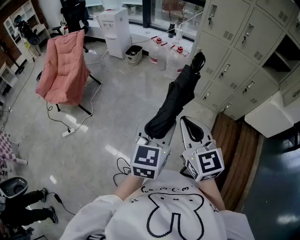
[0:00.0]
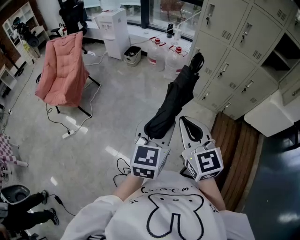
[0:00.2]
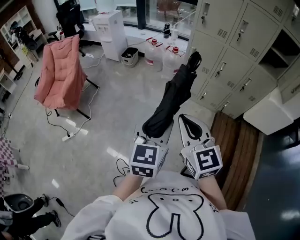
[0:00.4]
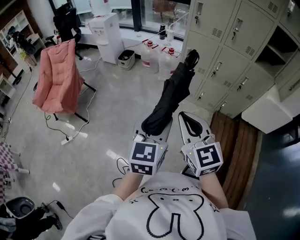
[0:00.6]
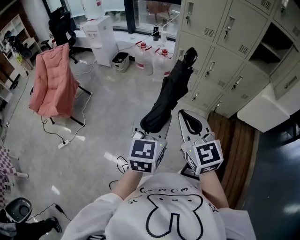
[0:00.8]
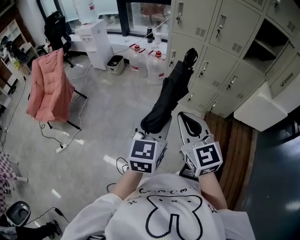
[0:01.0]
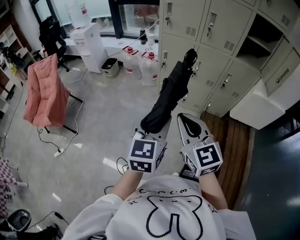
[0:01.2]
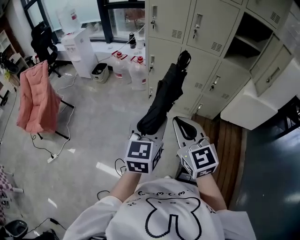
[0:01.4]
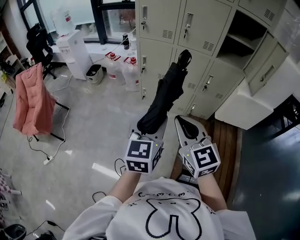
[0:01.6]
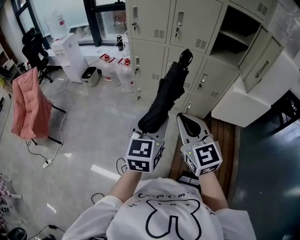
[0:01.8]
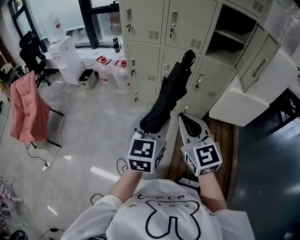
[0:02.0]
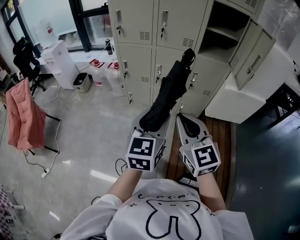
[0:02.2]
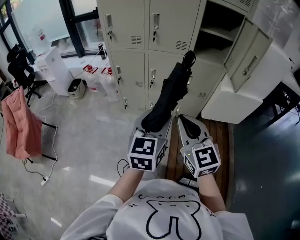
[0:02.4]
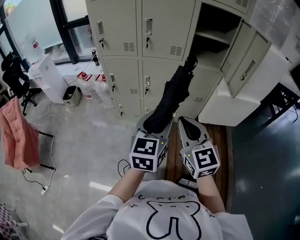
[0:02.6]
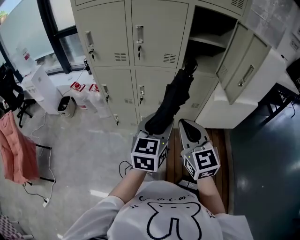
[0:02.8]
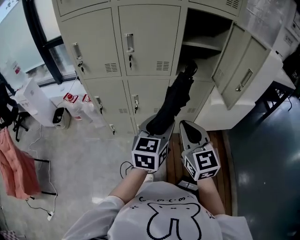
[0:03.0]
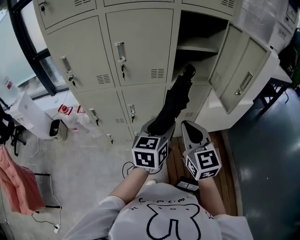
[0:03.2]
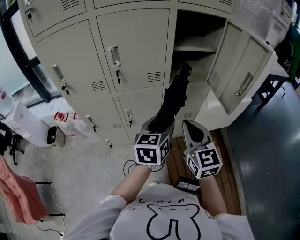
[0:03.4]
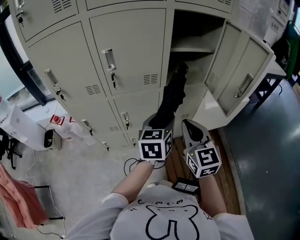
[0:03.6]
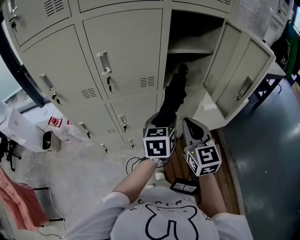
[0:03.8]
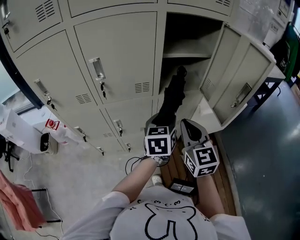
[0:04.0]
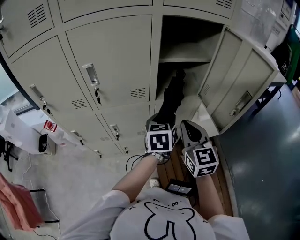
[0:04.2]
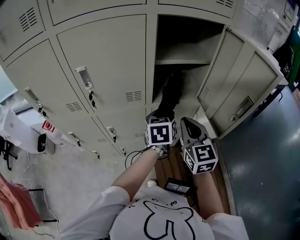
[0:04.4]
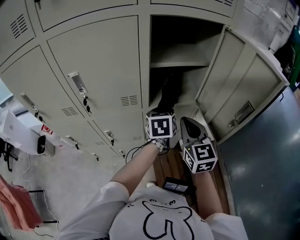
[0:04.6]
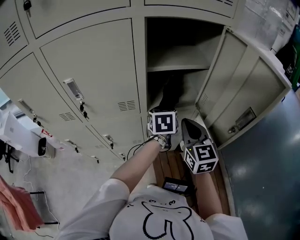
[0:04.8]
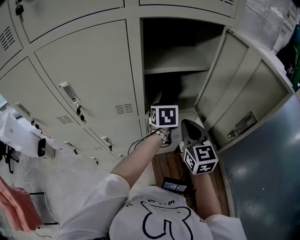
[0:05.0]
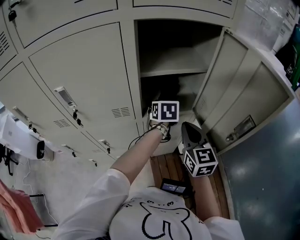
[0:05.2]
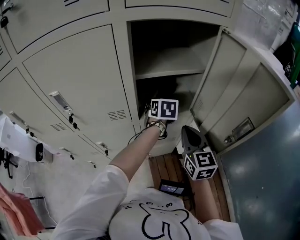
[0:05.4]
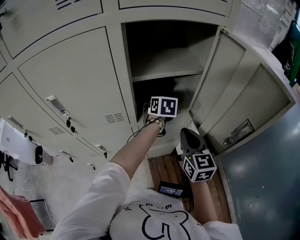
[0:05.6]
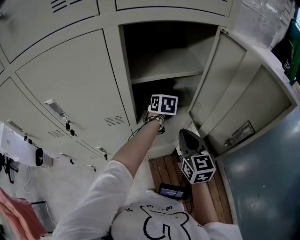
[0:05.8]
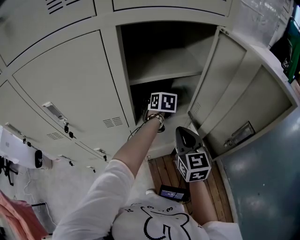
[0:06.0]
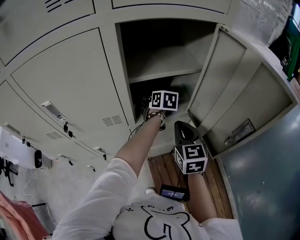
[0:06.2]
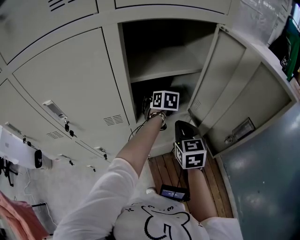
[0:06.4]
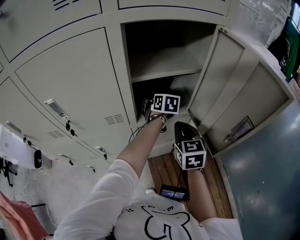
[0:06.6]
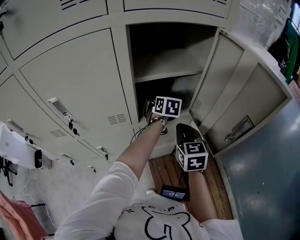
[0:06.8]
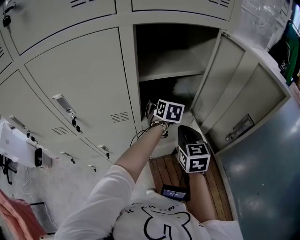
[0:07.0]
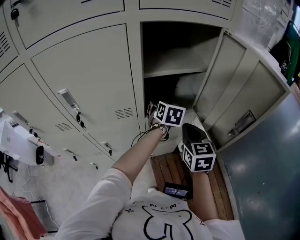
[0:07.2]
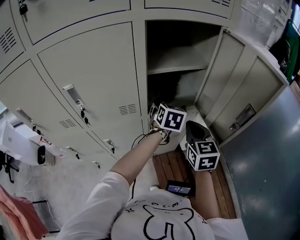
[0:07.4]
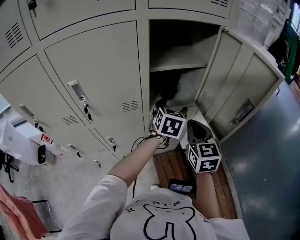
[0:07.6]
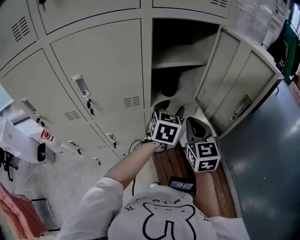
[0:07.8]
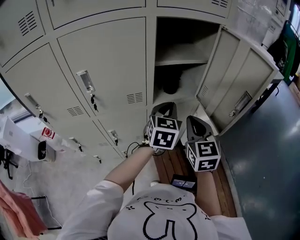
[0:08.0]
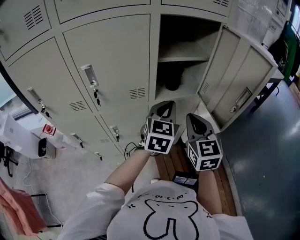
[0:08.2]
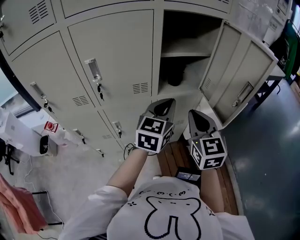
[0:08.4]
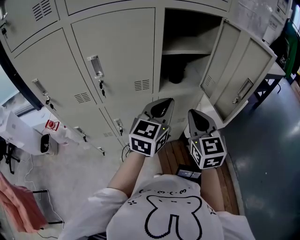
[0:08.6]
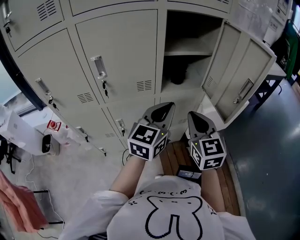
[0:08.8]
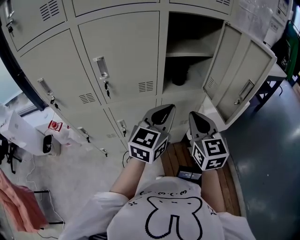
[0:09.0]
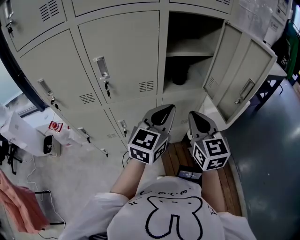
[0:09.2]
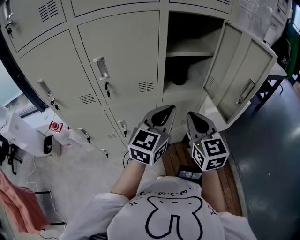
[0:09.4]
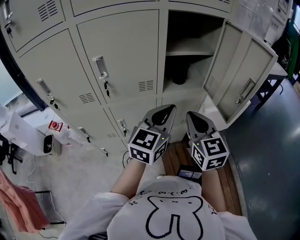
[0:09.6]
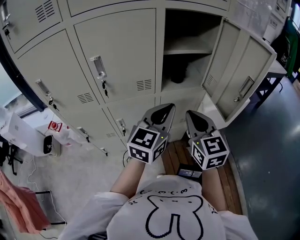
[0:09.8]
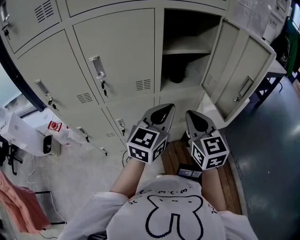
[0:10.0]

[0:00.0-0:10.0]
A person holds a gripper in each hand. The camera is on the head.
0:00.0 to 0:01.4: The grippers both shift to the right by roughly 25 cm.
0:01.4 to 0:02.8: Both grippers travel together to the right and forward, approximately 30 cm. The left gripper swivels about 20 degrees, while the right gripper rotates roughly 20 degrees.
0:02.8 to 0:04.2: Both grippers travel together forward, approximately 25 cm.
0:04.2 to 0:05.8: The left gripper shifts some 25 cm forward, and turns by roughly 30 degrees; the right gripper heads forward and to the right, covering some 15 cm.
0:05.8 to 0:07.2: The left gripper shifts approximately 5 cm backward, and opens up.
0:07.2 to 0:08.6: The right gripper travels backward and upward by approximately 15 cm. The left gripper travels backward and upward by about 25 cm, turns by roughly 30 degrees, and closes its fingers.
0:08.6 to 0:10.0: The grippers move only a little.

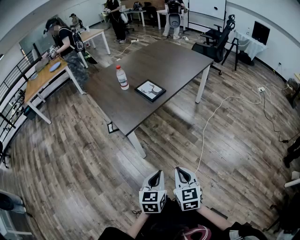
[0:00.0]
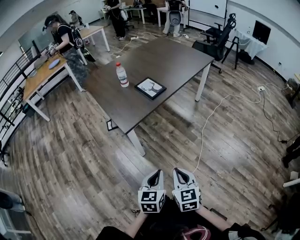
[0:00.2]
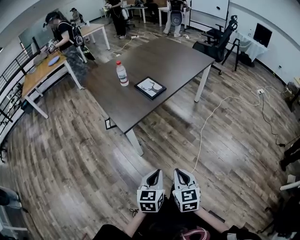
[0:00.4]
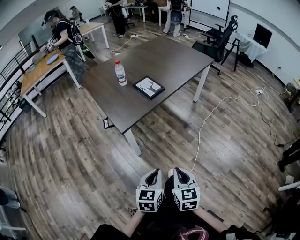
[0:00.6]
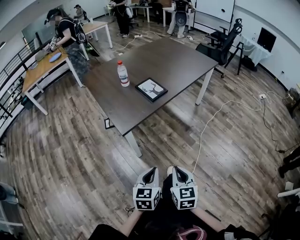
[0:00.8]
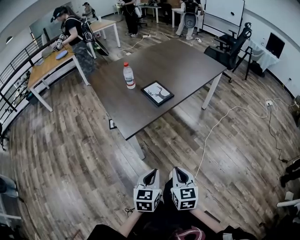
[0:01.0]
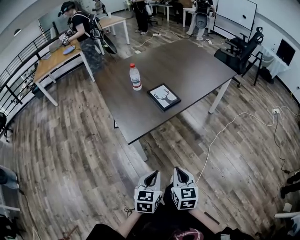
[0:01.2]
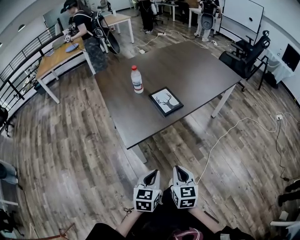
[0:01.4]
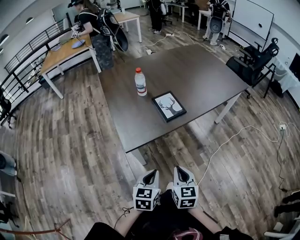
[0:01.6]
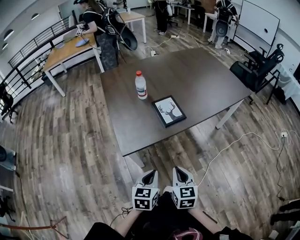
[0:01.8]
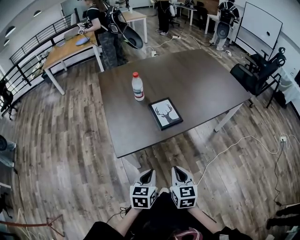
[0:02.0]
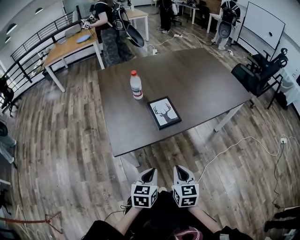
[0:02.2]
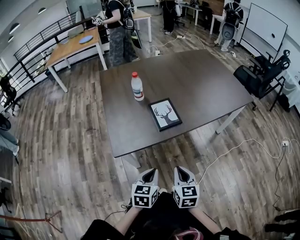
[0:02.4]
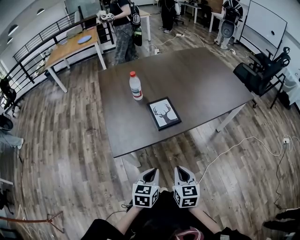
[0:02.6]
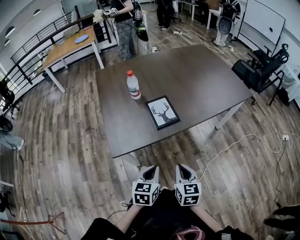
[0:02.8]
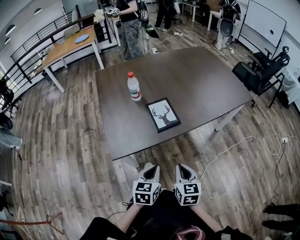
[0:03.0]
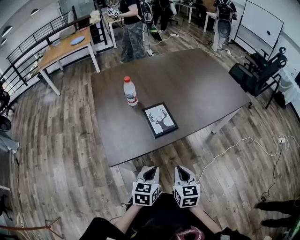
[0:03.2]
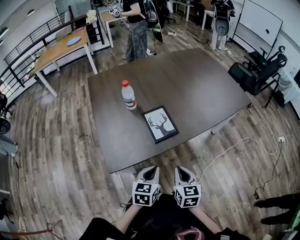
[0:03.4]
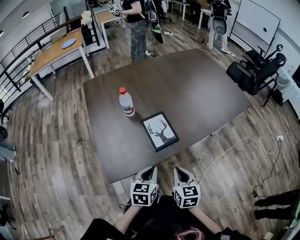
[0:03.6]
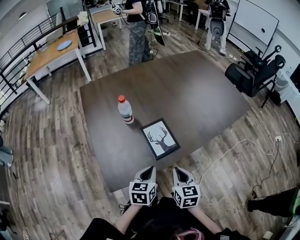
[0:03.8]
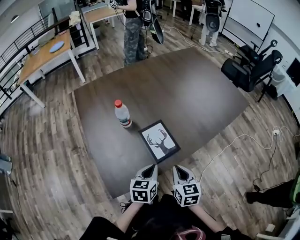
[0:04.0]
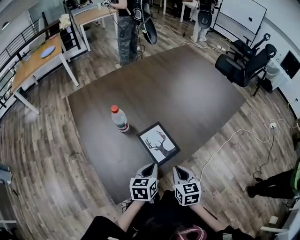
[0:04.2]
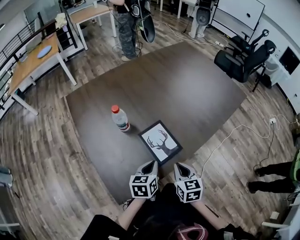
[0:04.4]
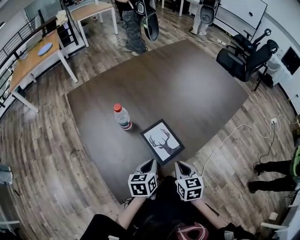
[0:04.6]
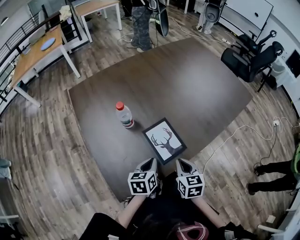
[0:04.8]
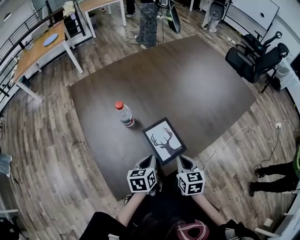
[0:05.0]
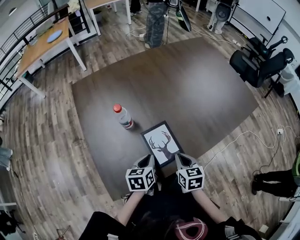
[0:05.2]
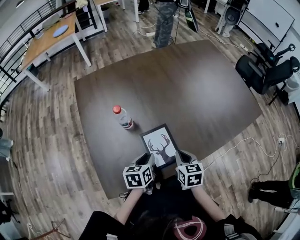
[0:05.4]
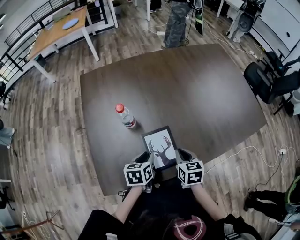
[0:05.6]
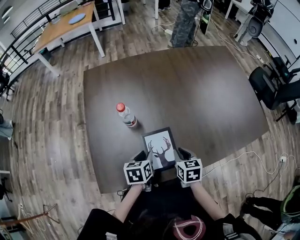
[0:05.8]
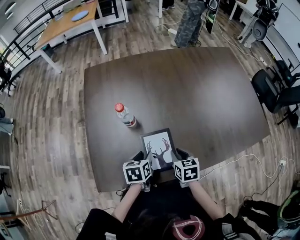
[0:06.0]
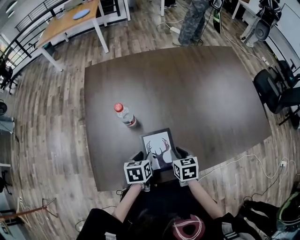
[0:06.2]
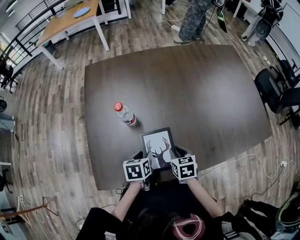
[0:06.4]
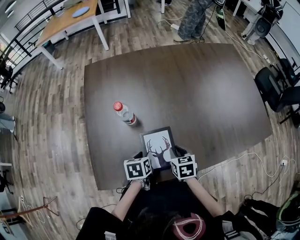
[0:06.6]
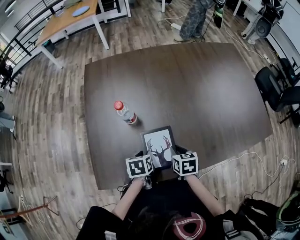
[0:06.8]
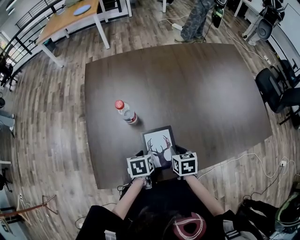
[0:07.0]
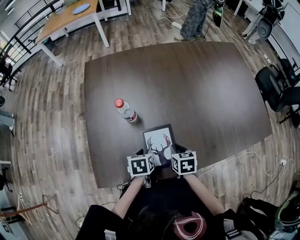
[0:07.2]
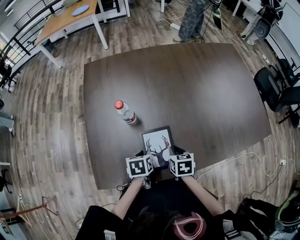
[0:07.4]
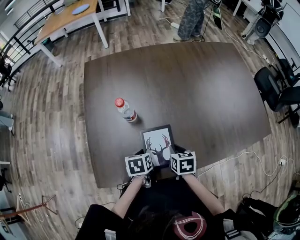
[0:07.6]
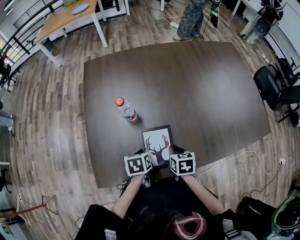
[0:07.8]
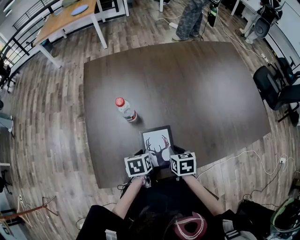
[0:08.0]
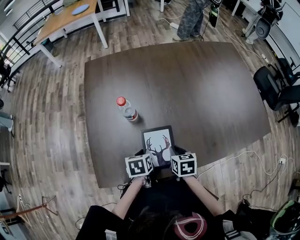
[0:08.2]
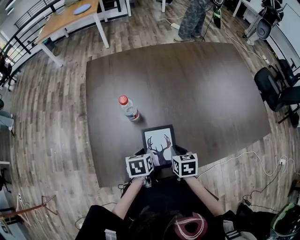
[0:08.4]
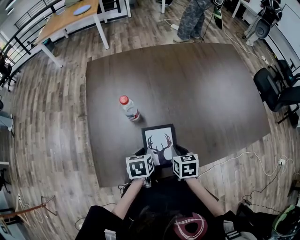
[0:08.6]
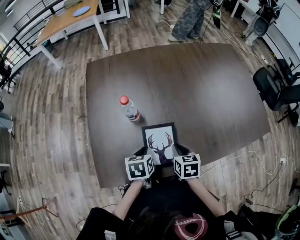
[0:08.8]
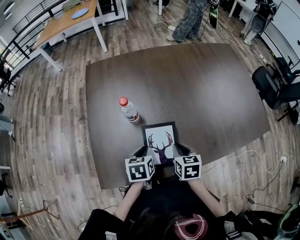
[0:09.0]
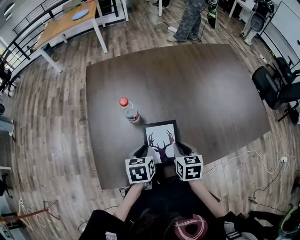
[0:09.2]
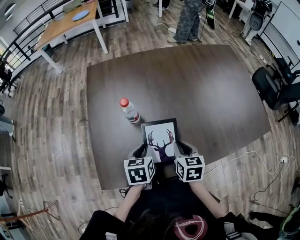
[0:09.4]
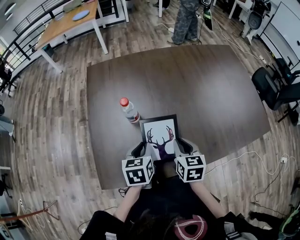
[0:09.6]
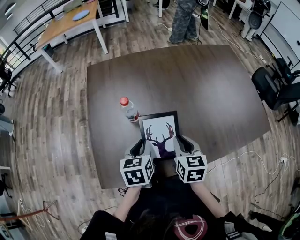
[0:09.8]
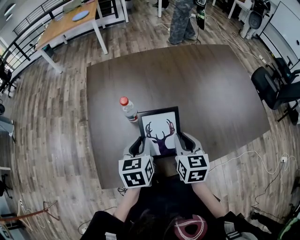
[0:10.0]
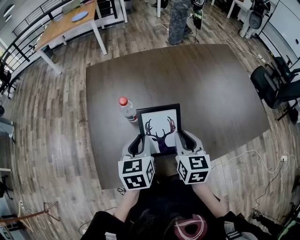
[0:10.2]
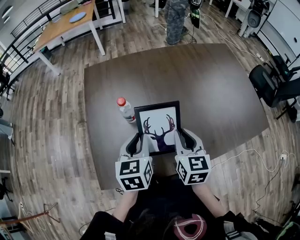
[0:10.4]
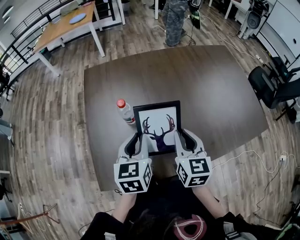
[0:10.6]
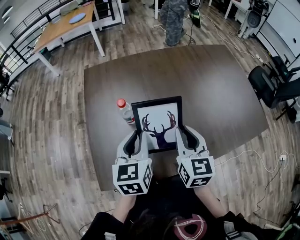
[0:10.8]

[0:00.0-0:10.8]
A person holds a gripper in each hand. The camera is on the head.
0:00.0 to 0:01.6: The two grippers go some 25 cm forward.
0:01.6 to 0:03.0: The two grippers go roughly 15 cm forward and to the right.
0:03.0 to 0:04.6: Both grippers move forward, some 20 cm.
0:04.6 to 0:06.2: The left gripper shifts by some 10 cm, changes its angle by some 30 degrees, and opens its fingers. The right gripper moves about 15 cm, turns by roughly 30 degrees, and opens its fingers.
0:06.2 to 0:07.8: The left gripper closes.
0:07.8 to 0:09.2: The two grippers go about 5 cm upward.
0:09.2 to 0:10.8: The two grippers go approximately 15 cm upward. The left gripper rotates about 30 degrees, while the right gripper turns by some 30 degrees.

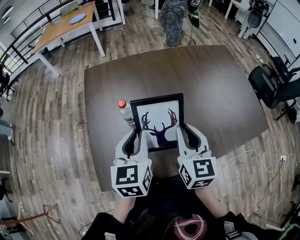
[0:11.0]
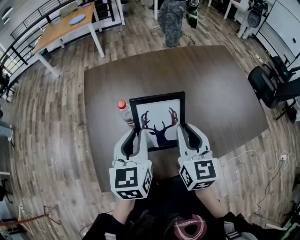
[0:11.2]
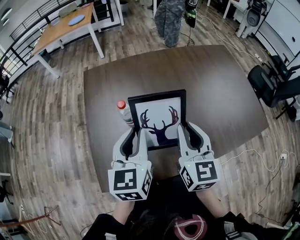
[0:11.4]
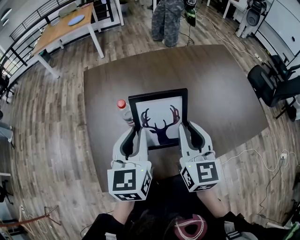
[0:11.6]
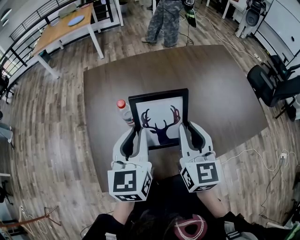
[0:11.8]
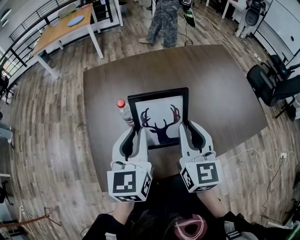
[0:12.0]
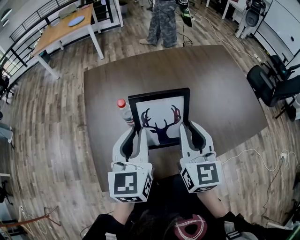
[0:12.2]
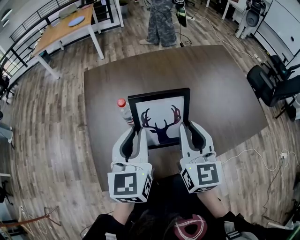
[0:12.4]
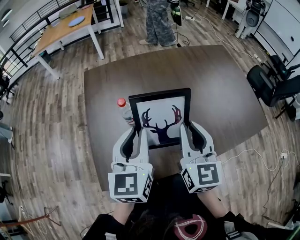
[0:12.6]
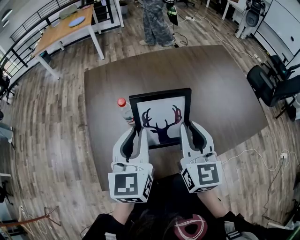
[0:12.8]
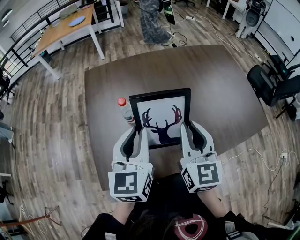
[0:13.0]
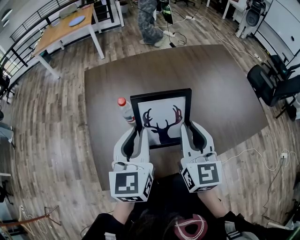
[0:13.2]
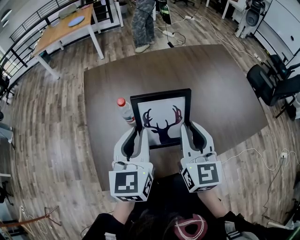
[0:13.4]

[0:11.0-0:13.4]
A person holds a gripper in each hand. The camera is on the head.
0:11.0 to 0:12.2: The grippers make only small movements.
0:12.2 to 0:13.4: Neither gripper changes place.
